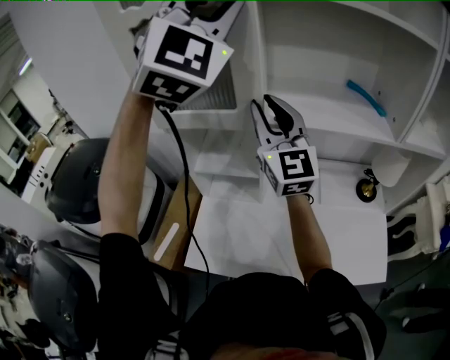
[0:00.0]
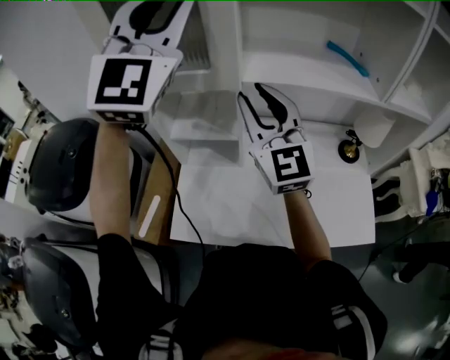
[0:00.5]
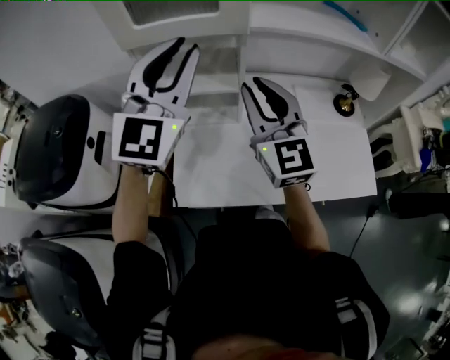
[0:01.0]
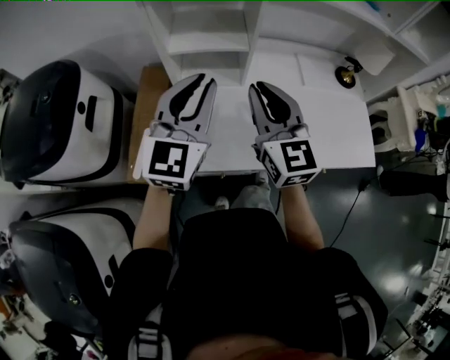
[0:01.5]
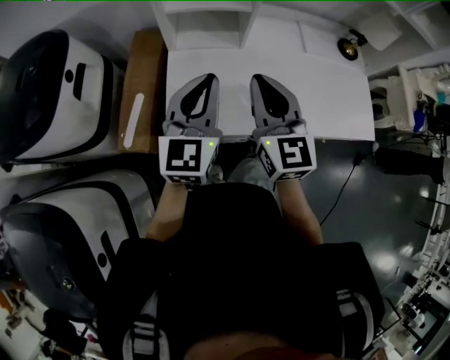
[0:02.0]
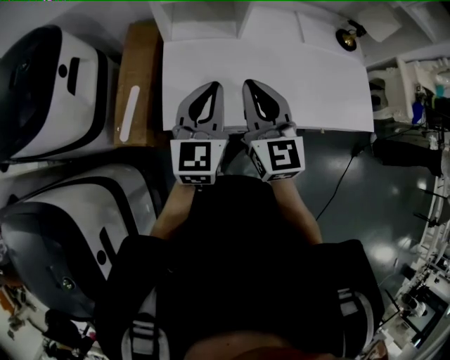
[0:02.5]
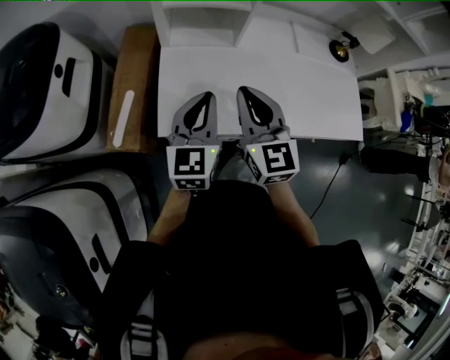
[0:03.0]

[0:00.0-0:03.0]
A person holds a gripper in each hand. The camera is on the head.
0:00.0 to 0:01.5: The right gripper moves backward and downward, some 30 cm, and changes its angle by about 20 degrees. The left gripper travels downward and backward by some 40 cm, and rotates around the line of its fingers by some 50 degrees, counterclockwise from behind.
0:01.5 to 0:03.0: Both grippers travel together downward and backward, approximately 15 cm. The left gripper swivels some 20 degrees.

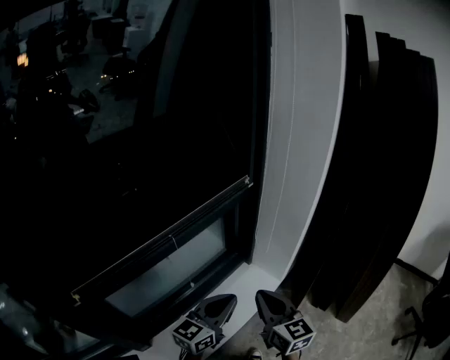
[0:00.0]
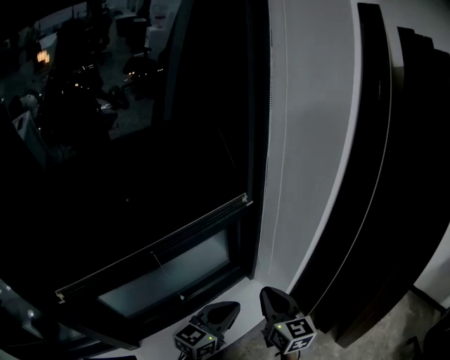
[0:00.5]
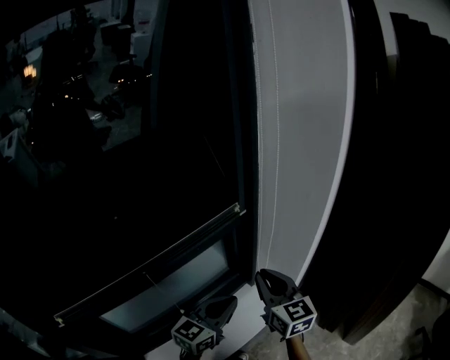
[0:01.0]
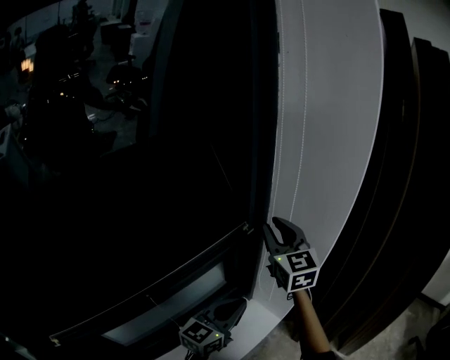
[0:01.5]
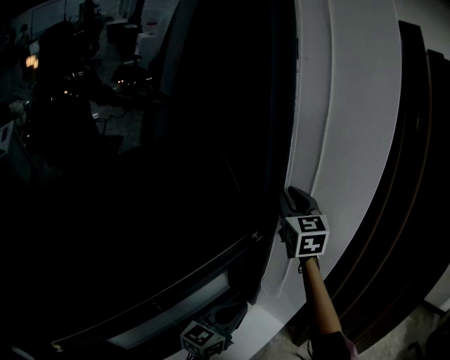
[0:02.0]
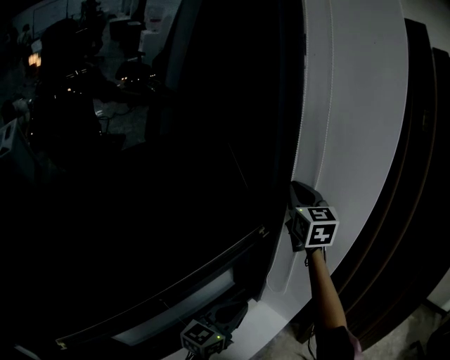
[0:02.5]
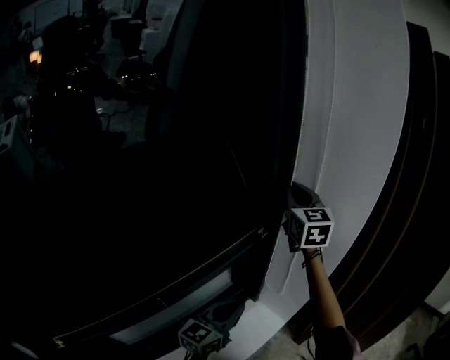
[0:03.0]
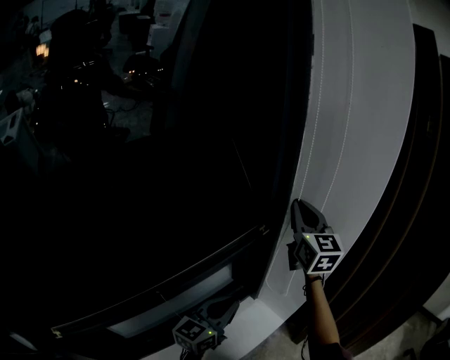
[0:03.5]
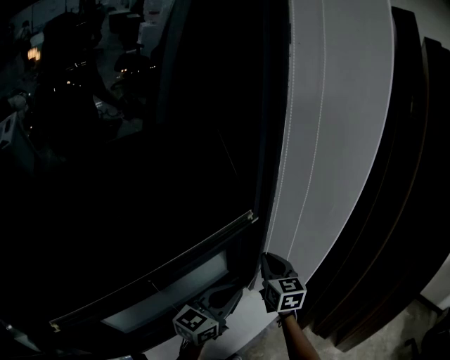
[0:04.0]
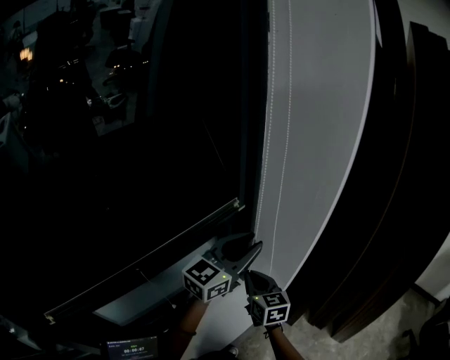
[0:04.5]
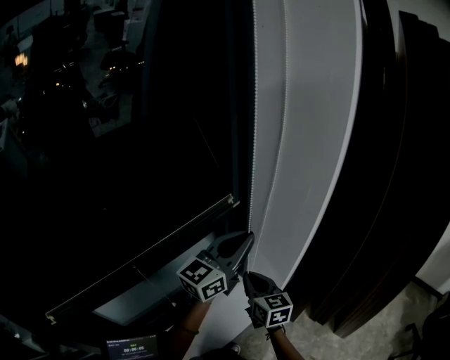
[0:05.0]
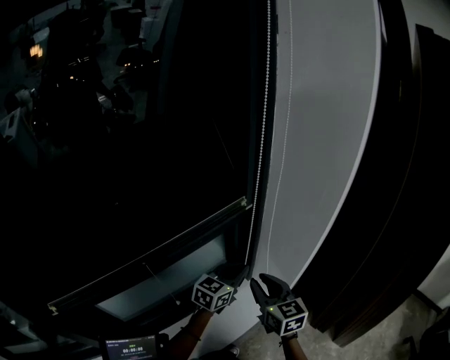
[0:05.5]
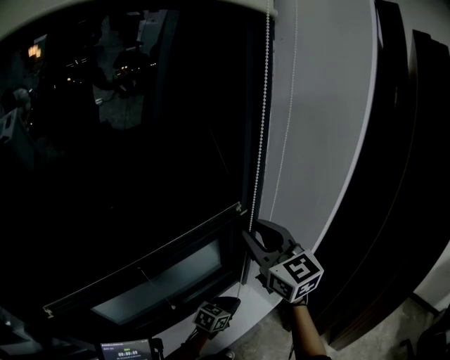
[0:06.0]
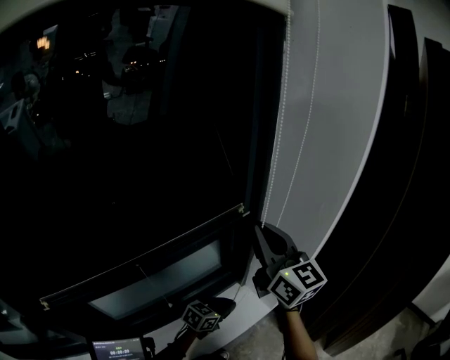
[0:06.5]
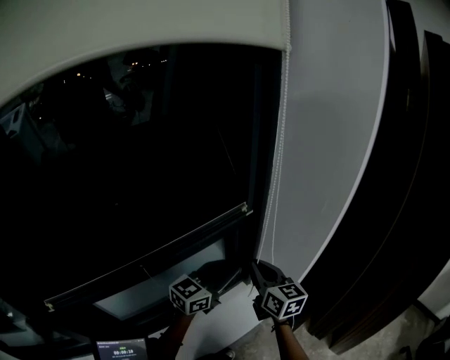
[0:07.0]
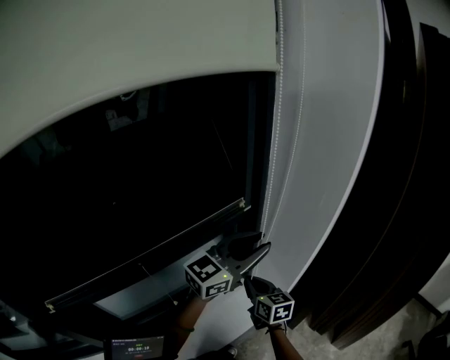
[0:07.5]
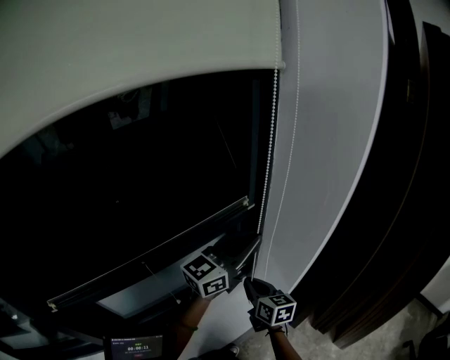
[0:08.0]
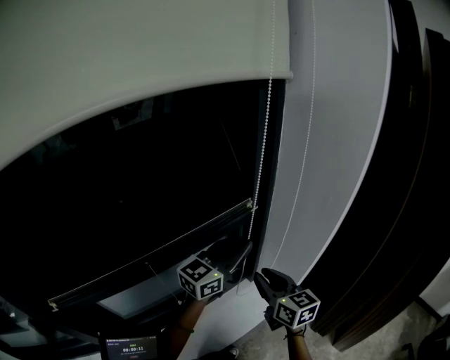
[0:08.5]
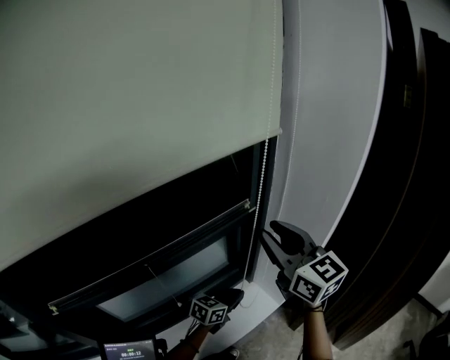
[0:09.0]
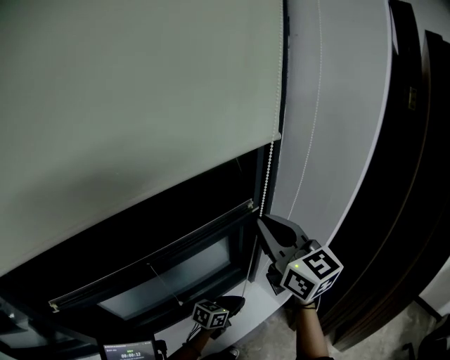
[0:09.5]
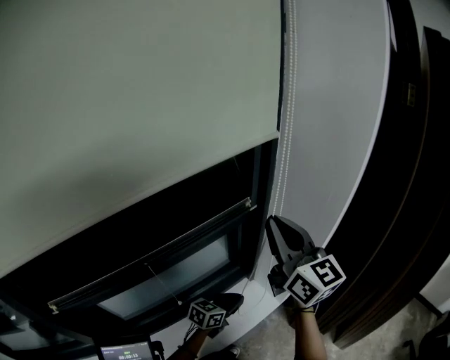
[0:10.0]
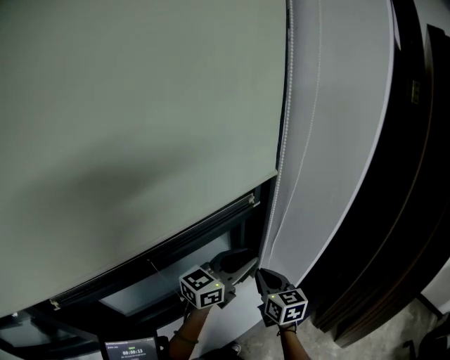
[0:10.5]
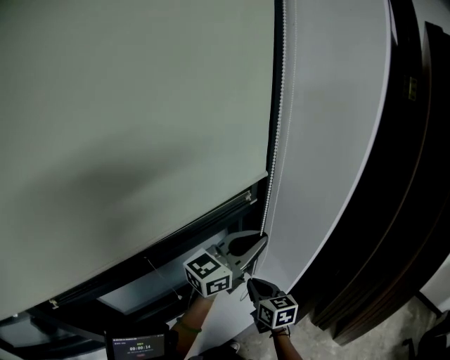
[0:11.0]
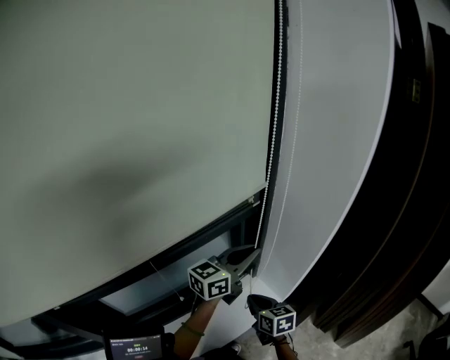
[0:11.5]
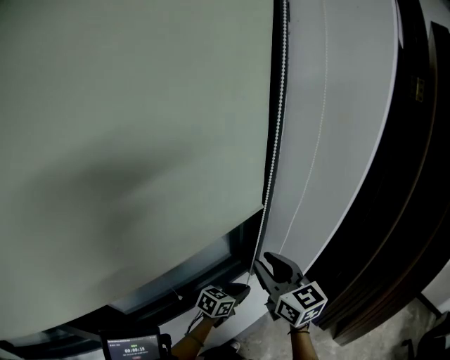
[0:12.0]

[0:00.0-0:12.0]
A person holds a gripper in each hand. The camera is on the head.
0:00.0 to 0:02.0: The left gripper shifts approximately 25 cm forward; the right gripper heads forward and upward, covering approximately 50 cm, and rotates roughly 30 degrees.
0:02.0 to 0:04.0: The right gripper travels downward and backward by roughly 25 cm, and changes its angle by some 20 degrees.
0:04.0 to 0:06.0: The right gripper goes about 20 cm upward and backward, swivels about 30 degrees, and opens, while the left gripper heads downward, covering some 20 cm, tilts its fingers about 30 degrees downward, and opens, then closes once more.
0:06.0 to 0:08.0: The left gripper is displaced upward by some 30 cm, tips its fingers upward by about 40 degrees, and opens and closes again. The right gripper moves downward, about 25 cm, turns by some 40 degrees, and closes.
0:08.0 to 0:10.0: The right gripper travels upward by approximately 30 cm, rotates some 30 degrees, and opens, then closes again, while the left gripper shifts some 30 cm downward, and angles its fingers downward, by some 30 degrees.
0:10.0 to 0:12.0: The left gripper travels upward and back again, some 30 cm each way. The right gripper moves downward, some 15 cm, and opens.

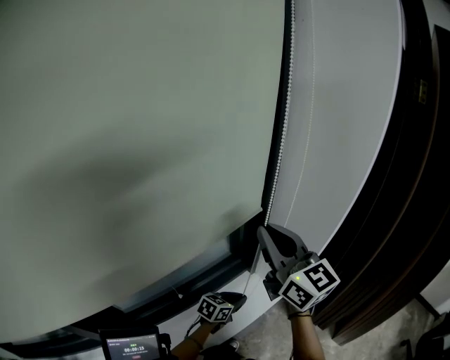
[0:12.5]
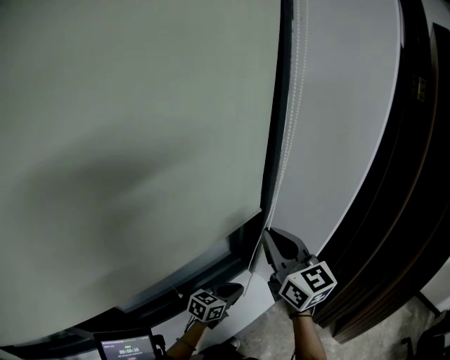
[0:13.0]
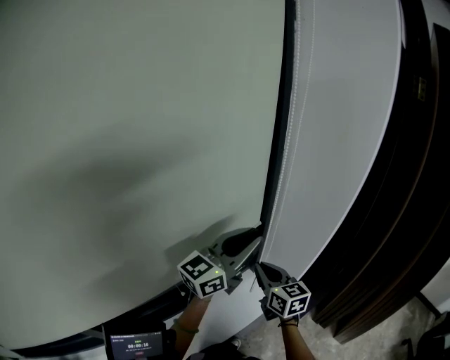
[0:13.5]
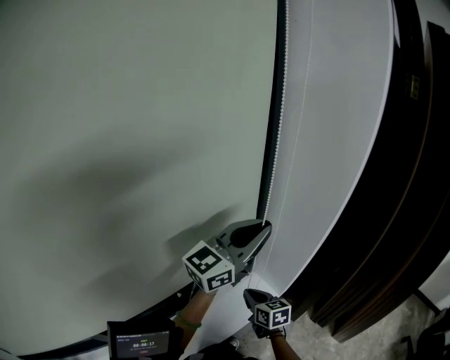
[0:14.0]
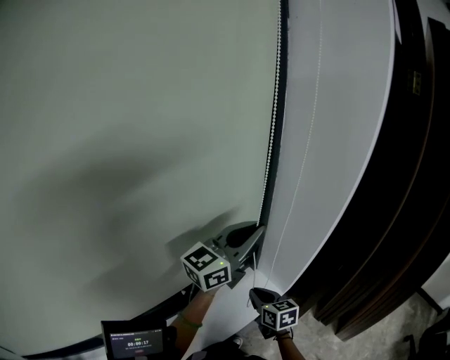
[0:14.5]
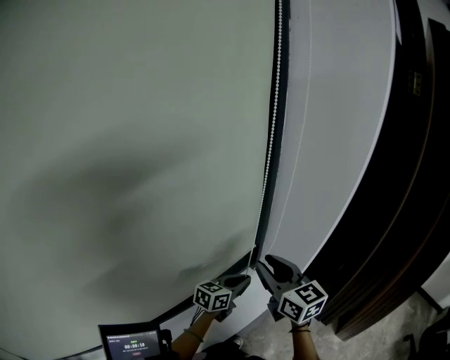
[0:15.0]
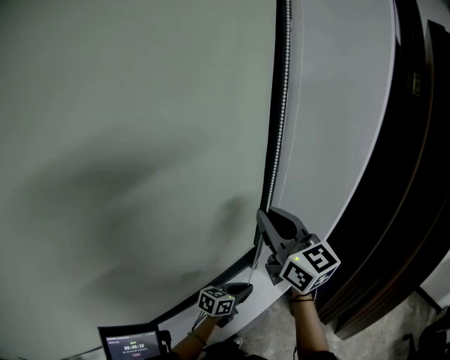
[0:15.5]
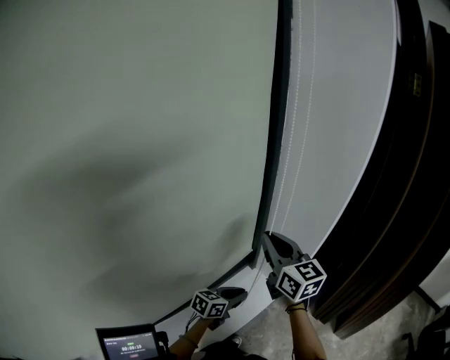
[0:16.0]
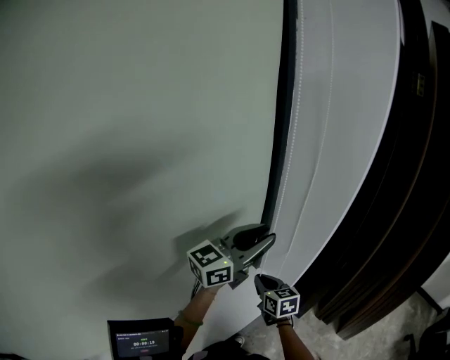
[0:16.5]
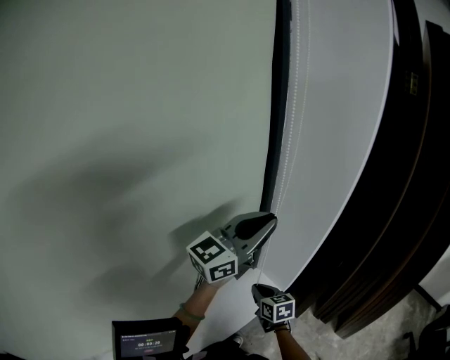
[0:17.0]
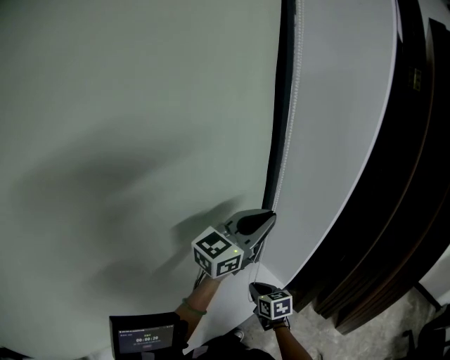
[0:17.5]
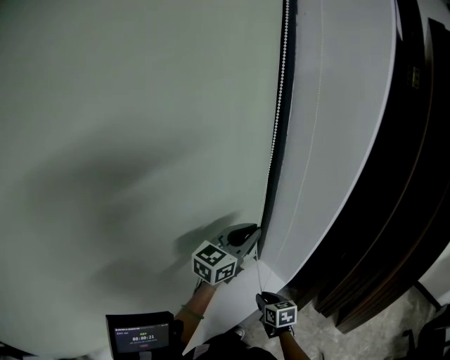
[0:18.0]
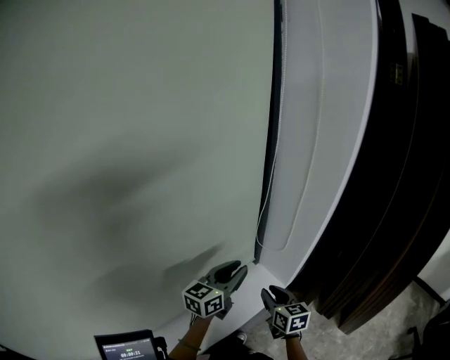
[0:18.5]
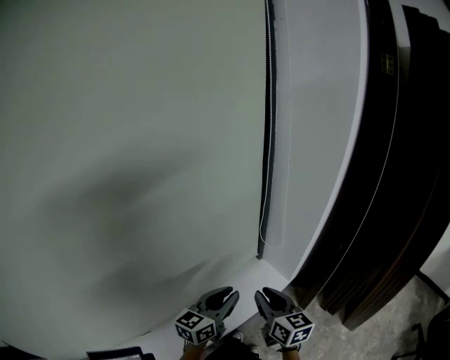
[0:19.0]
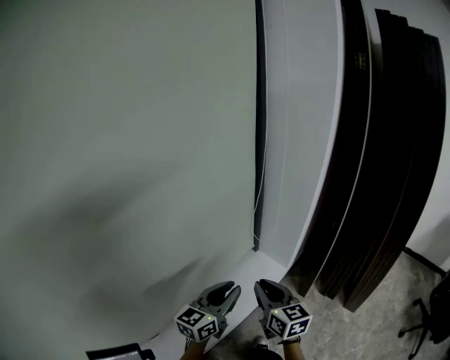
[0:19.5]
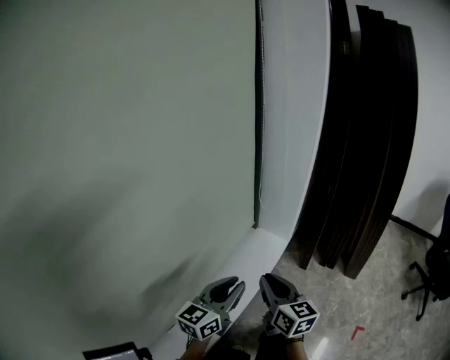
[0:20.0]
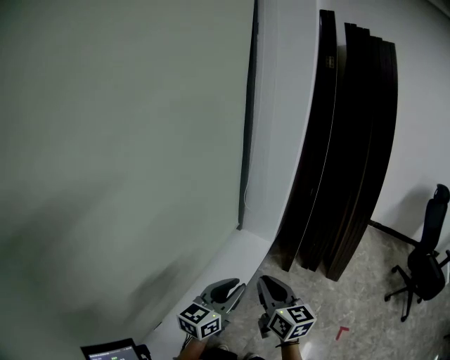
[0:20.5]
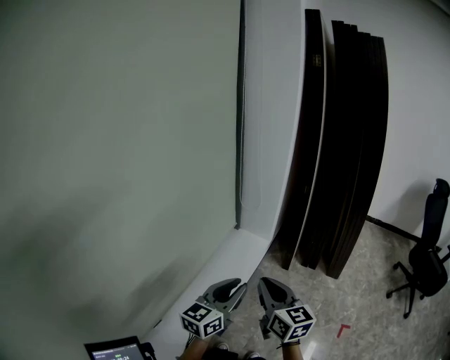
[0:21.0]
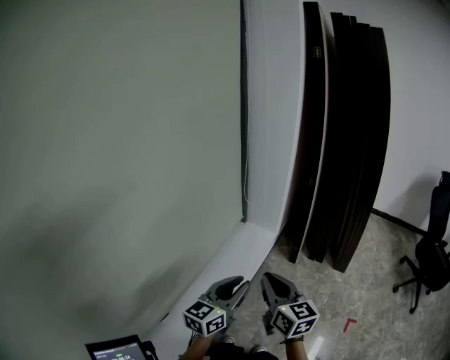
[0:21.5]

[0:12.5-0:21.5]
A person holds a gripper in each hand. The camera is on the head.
0:12.5 to 0:14.5: The left gripper travels upward by about 35 cm, and angles its fingers upward, by approximately 50 degrees. The right gripper moves downward, some 35 cm, and points its fingers about 40 degrees further downward.
0:14.5 to 0:17.0: The right gripper goes upward and returns, about 35 cm each way, and opens and closes again. The left gripper travels downward and back again, approximately 30 cm each way.
0:17.0 to 0:19.5: The right gripper shifts approximately 25 cm backward and upward, and rotates approximately 20 degrees; the left gripper heads backward and downward, covering some 30 cm, and changes its angle by some 30 degrees.
0:19.5 to 0:21.5: The grippers both shift backward by about 25 cm.

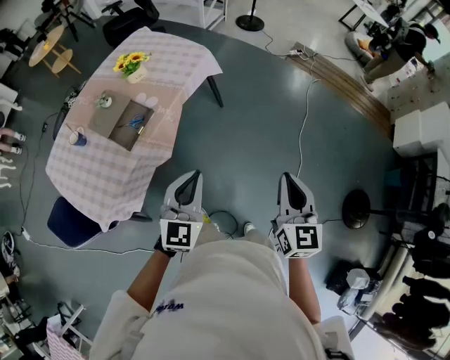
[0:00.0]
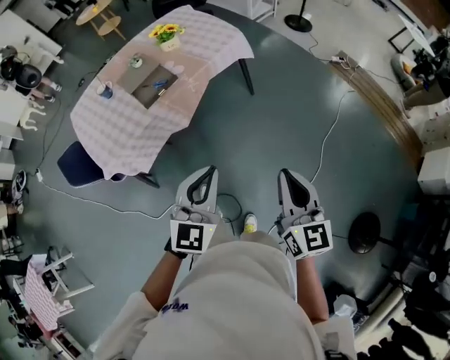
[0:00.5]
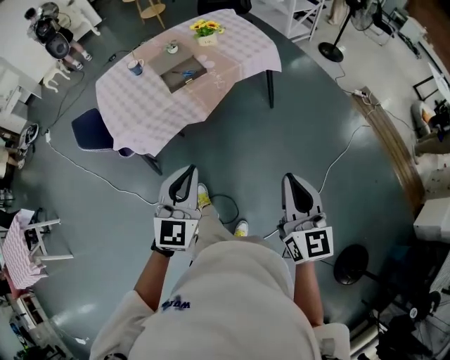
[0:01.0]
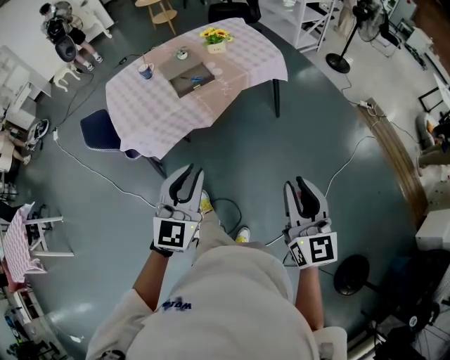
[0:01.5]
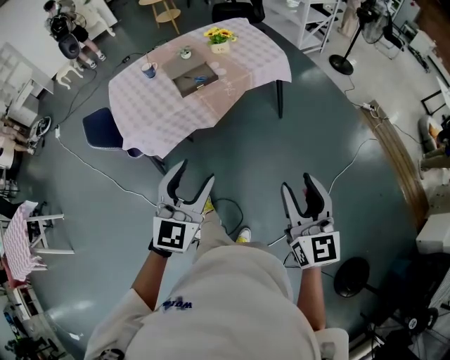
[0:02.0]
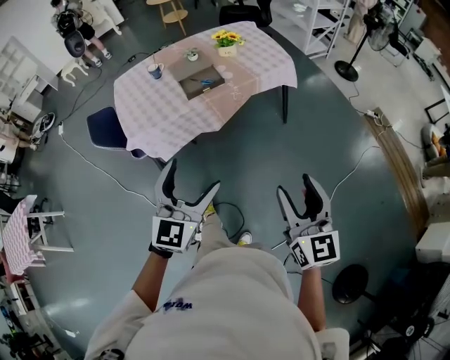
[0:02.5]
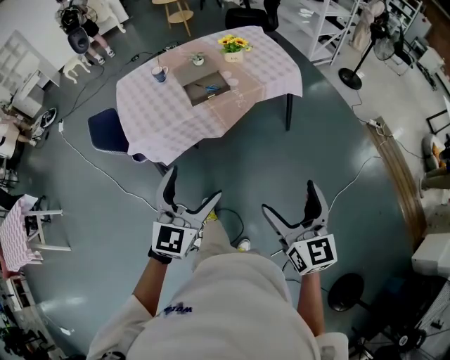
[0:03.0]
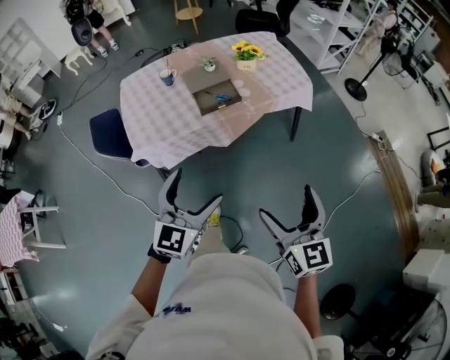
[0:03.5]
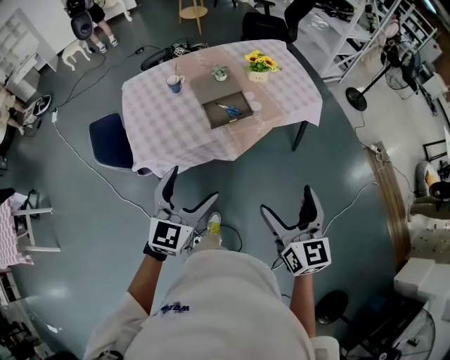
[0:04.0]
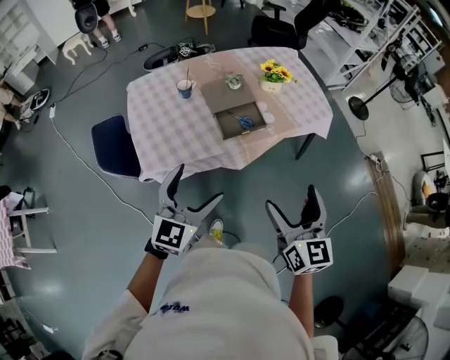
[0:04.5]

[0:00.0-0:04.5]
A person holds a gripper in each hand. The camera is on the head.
0:00.0 to 0:02.0: The left gripper changes place by approximately 20 cm, changes its angle by approximately 30 degrees, and opens up. Meanwhile the right gripper ends up roughly 10 cm from where it was, rotates some 40 degrees, and opens its fingers.
0:02.0 to 0:04.5: The grippers both shift forward and to the left by about 35 cm. The right gripper opens up. Meanwhile the left gripper opens up.
